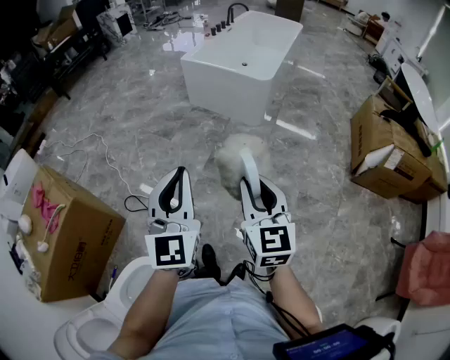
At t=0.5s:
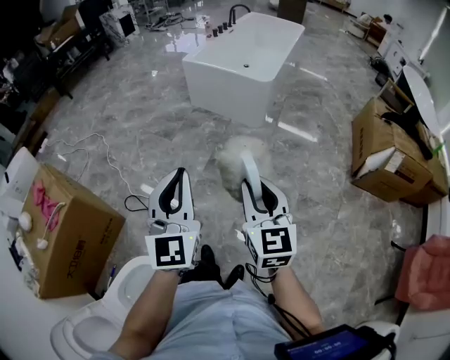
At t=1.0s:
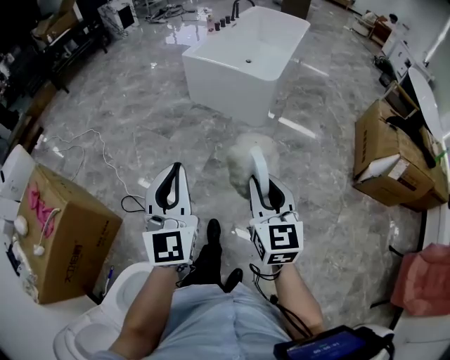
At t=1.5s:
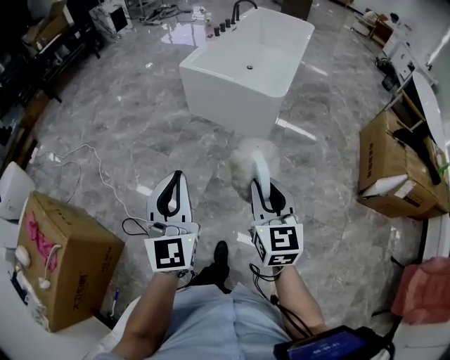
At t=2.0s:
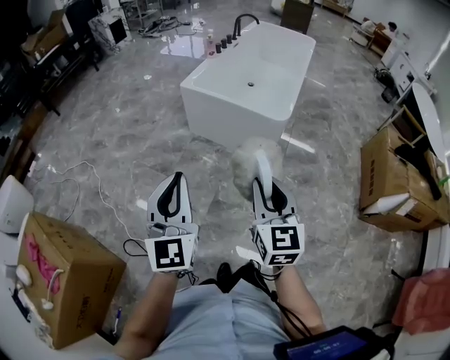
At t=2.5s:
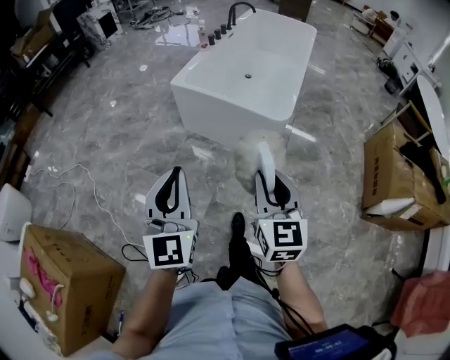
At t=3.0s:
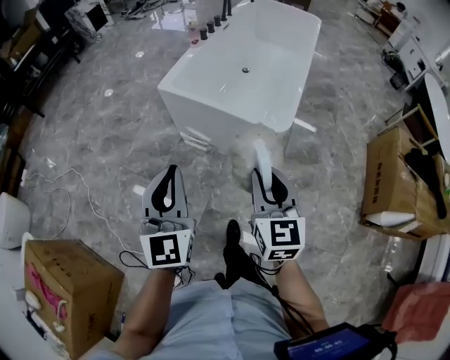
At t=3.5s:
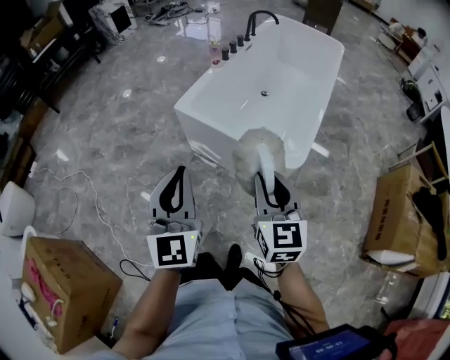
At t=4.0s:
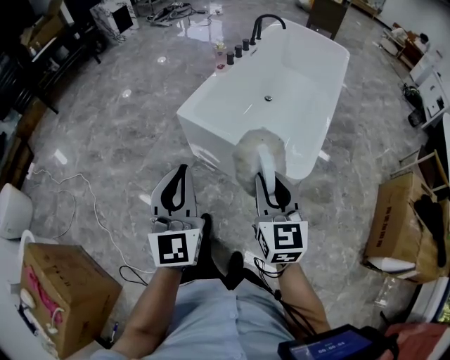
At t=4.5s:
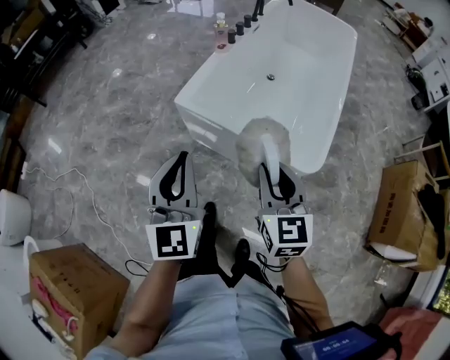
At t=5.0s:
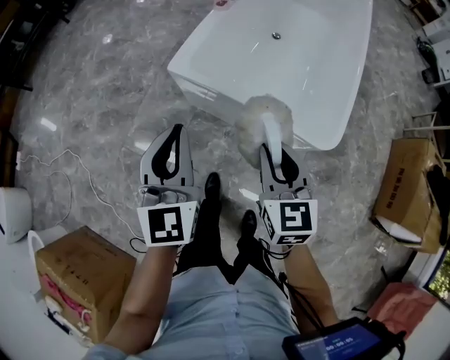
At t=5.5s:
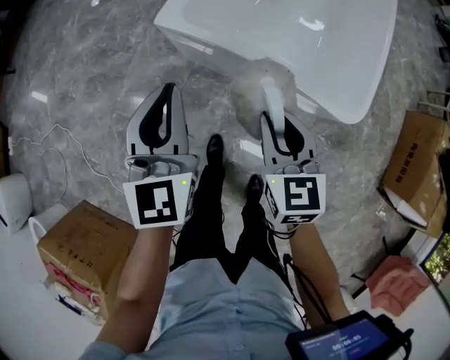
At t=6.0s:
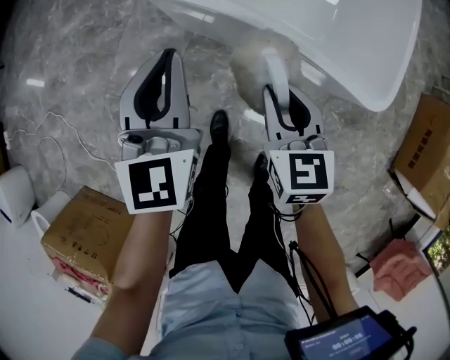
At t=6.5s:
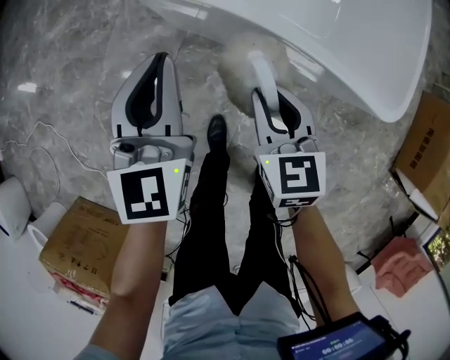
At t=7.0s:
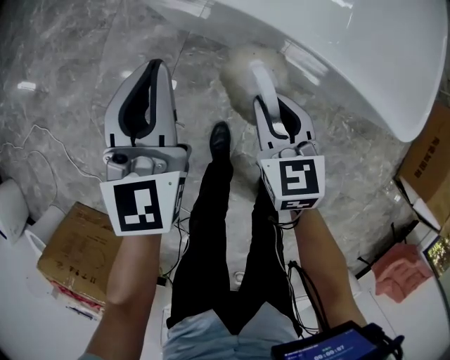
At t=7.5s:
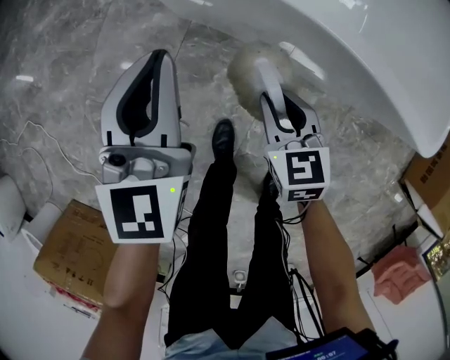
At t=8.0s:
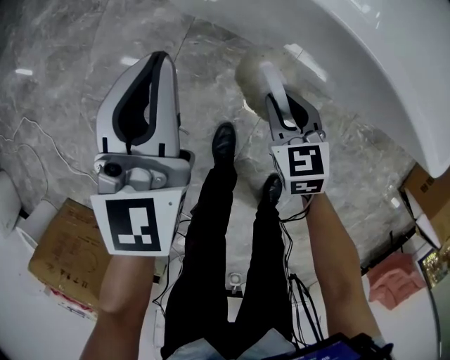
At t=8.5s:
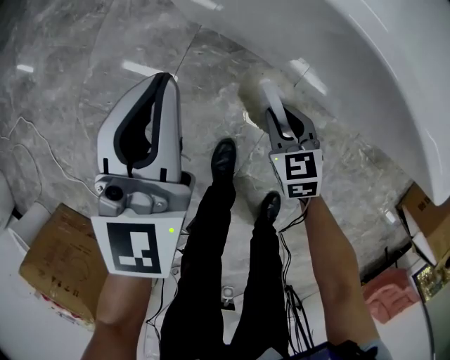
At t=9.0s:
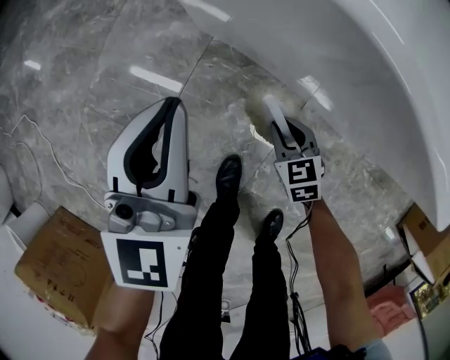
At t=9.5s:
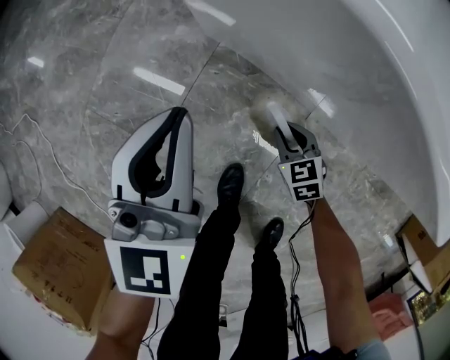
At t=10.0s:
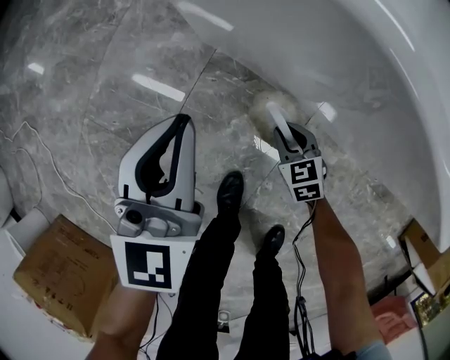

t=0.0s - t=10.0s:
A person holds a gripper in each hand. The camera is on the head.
t=0.0s - t=2.0s: The grippers both shift forward by roughly 40 cm.
t=2.0s - t=4.0s: Both grippers are carried forward, roughly 40 cm.
t=4.0s - t=6.0s: The grippers both shift downward and forward by roughly 40 cm. The right gripper changes its angle by about 20 degrees.
t=6.0s - t=8.0s: Both grippers travel together downward, approximately 30 cm.
t=8.0s - t=10.0s: The left gripper is displaced downward by roughly 10 cm, while the right gripper goes about 20 cm downward.

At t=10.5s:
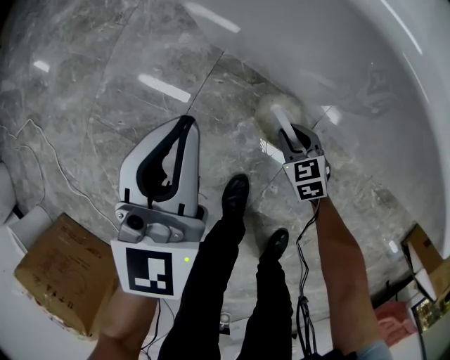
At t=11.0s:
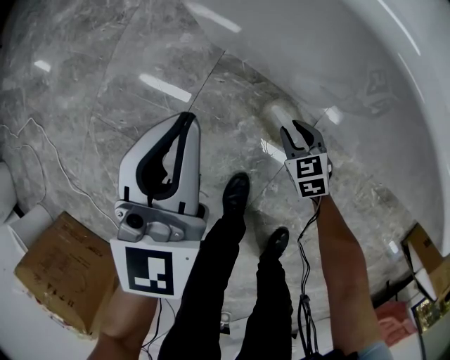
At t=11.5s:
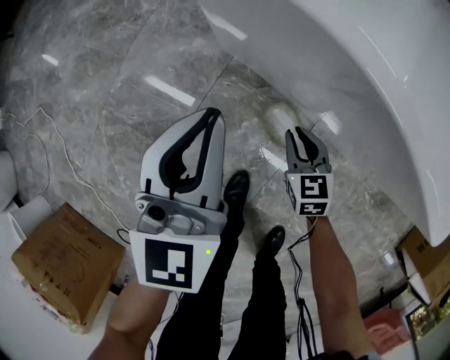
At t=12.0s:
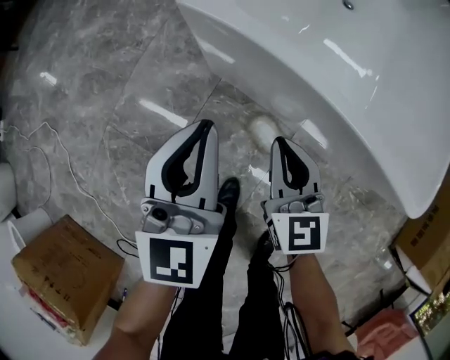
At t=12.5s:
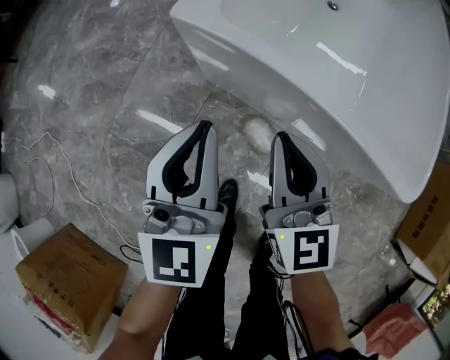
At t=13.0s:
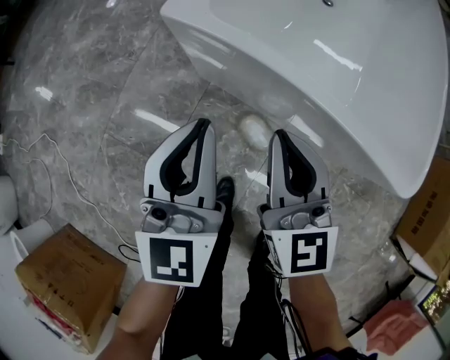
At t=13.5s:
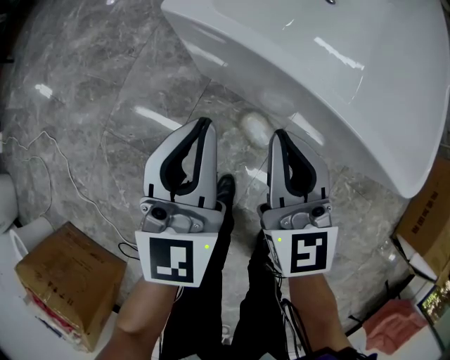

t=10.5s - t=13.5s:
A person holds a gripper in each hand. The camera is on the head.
t=10.5s - t=12.0s: The right gripper is displaced upward by approximately 35 cm, and tips its fingers upward by some 30 degrees, while the left gripper heads upward, covering about 15 cm.
t=12.0s - t=13.5s: The right gripper travels upward by approximately 10 cm.

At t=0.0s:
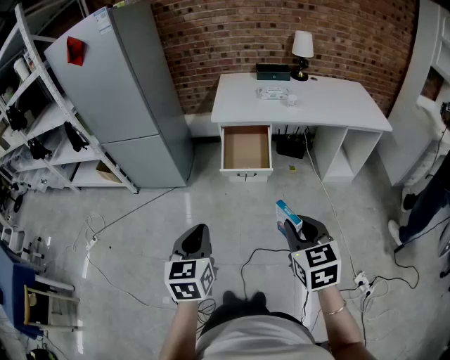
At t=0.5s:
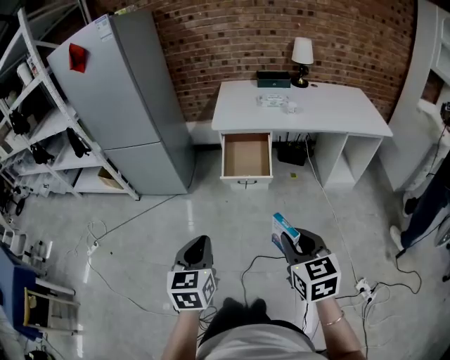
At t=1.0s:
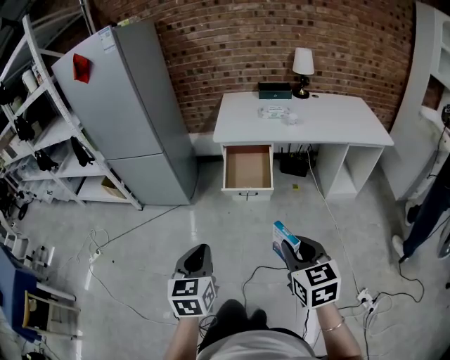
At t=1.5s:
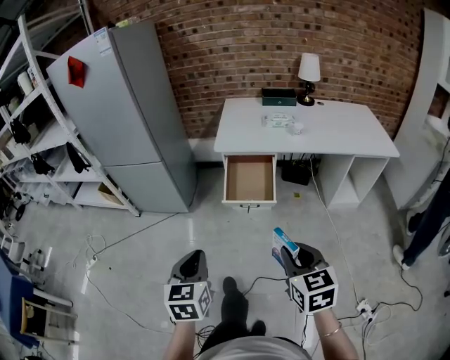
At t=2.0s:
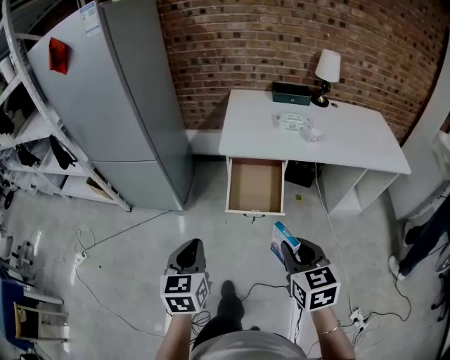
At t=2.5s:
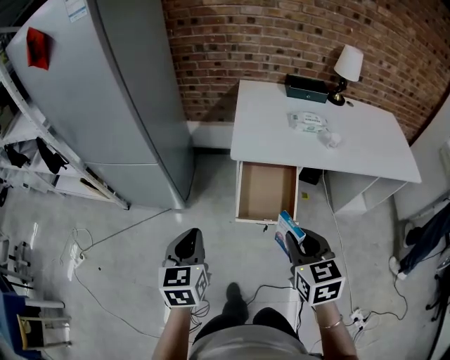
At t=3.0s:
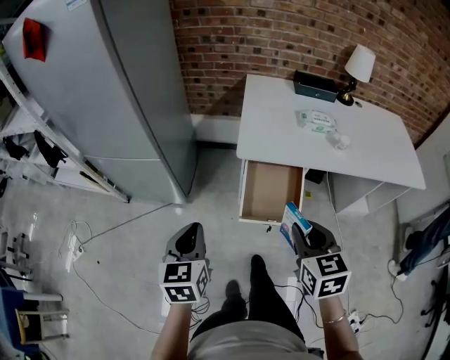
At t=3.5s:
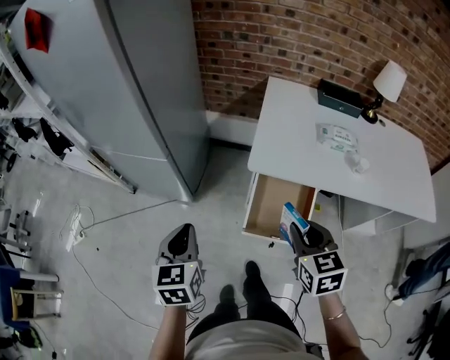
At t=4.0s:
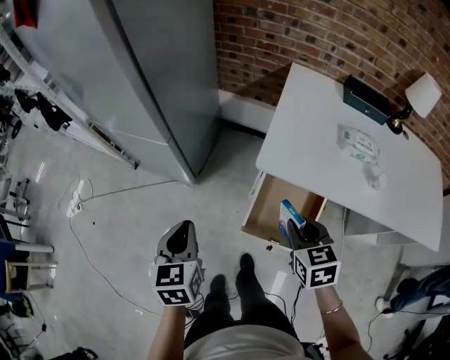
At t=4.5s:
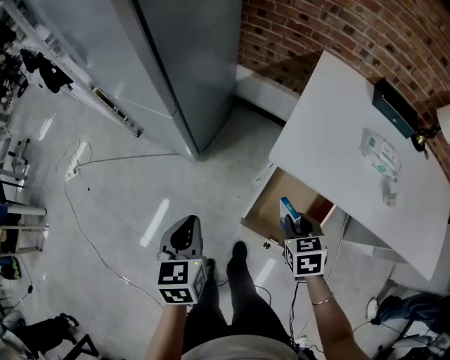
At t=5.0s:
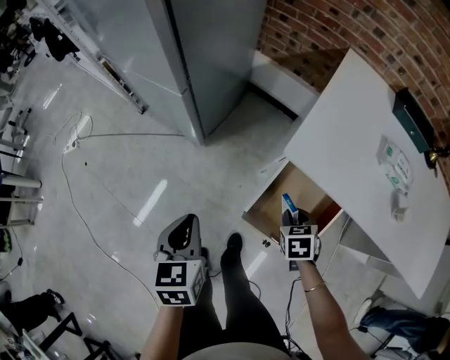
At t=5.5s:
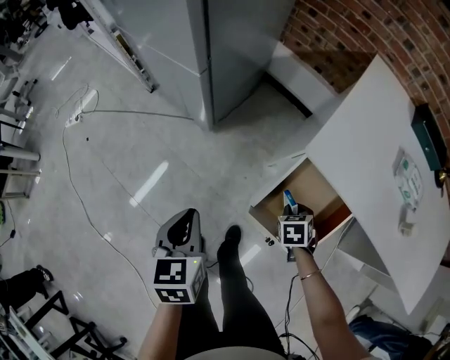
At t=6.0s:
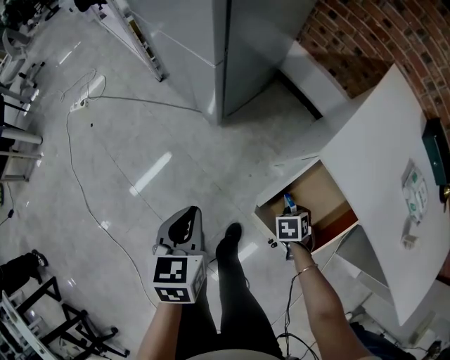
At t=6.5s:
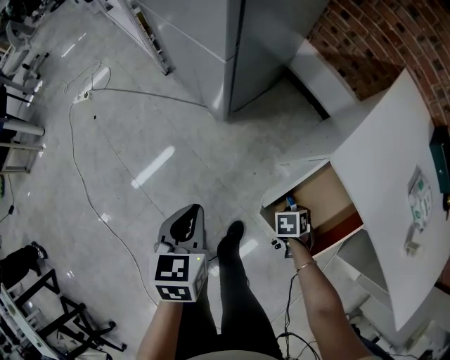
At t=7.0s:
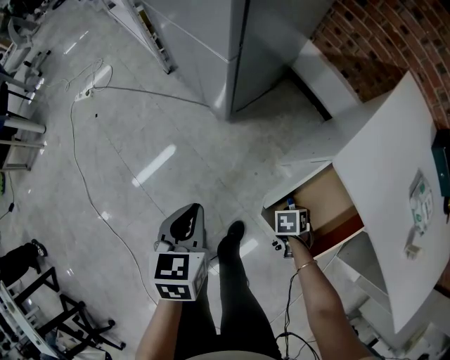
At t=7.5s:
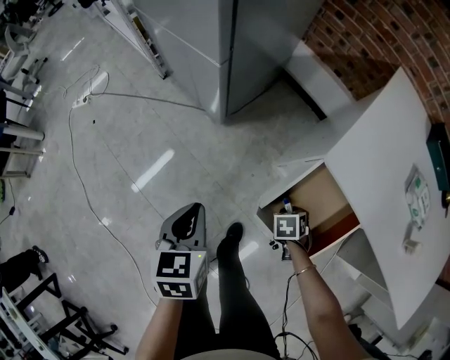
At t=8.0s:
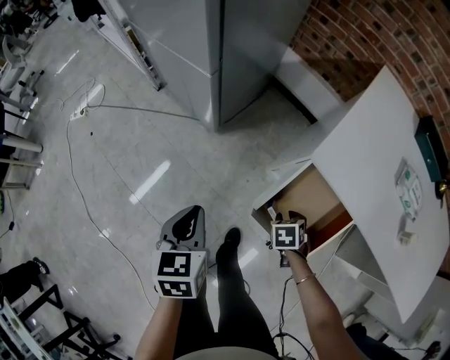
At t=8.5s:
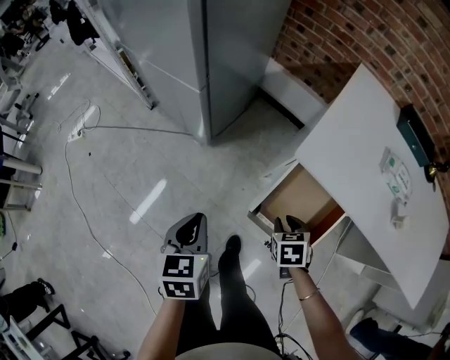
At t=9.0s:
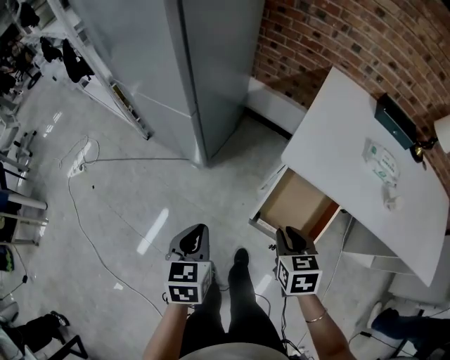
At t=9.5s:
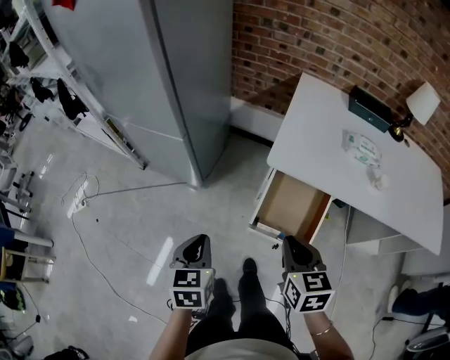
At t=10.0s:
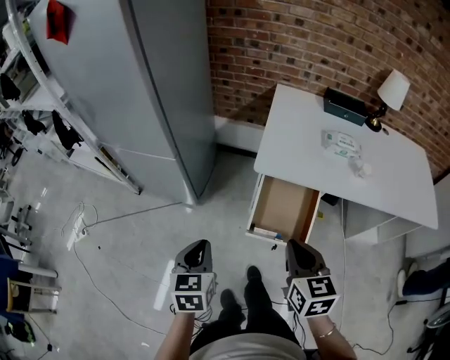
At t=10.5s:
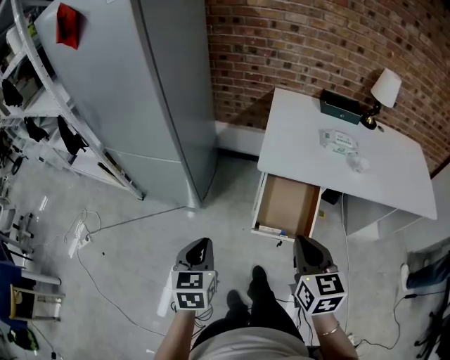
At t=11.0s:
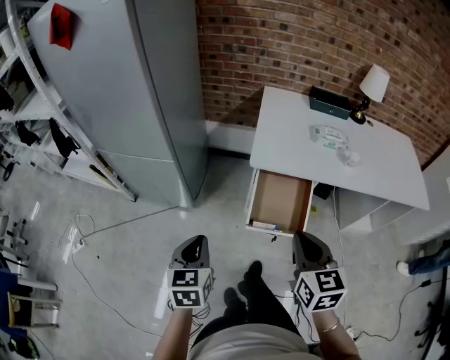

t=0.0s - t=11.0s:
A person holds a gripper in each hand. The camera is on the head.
t=0.0s - t=2.0s: The grippers both shift forward by approximately 25 cm.
t=2.0s - t=3.5s: Both grippers travel together forward, roughly 30 cm.
t=3.5s - t=5.5s: The left gripper is displaced downward by some 20 cm, and turns by some 30 degrees; the right gripper heads downward and forward, covering roughly 40 cm, and tips its fingers downward by approximately 40 degrees.
t=5.5s - t=7.5s: The right gripper heads downward, covering about 5 cm.
t=7.5s - t=9.0s: The right gripper moves upward, about 30 cm, and swivels about 40 degrees; the left gripper moves upward, about 10 cm.
t=9.0s - t=11.0s: The left gripper moves upward and backward, roughly 15 cm. Meanwhile the right gripper travels upward and backward by about 25 cm, changes its angle by some 30 degrees, and closes.

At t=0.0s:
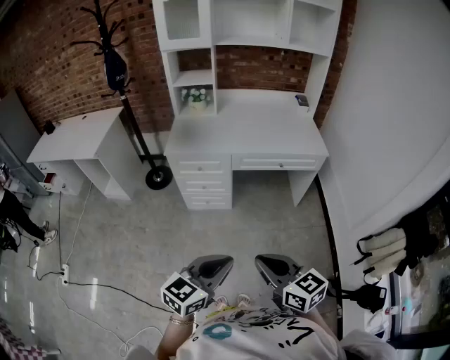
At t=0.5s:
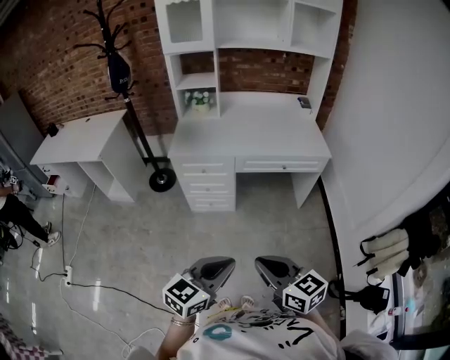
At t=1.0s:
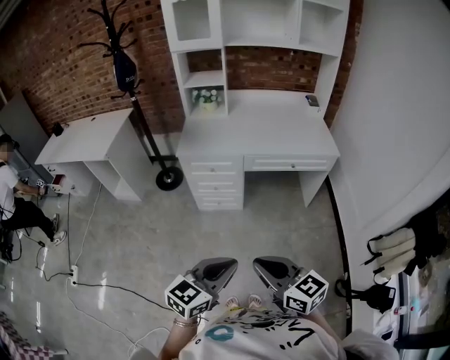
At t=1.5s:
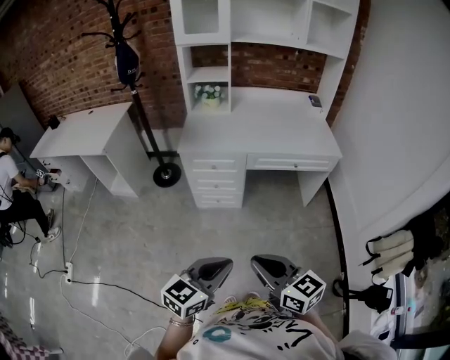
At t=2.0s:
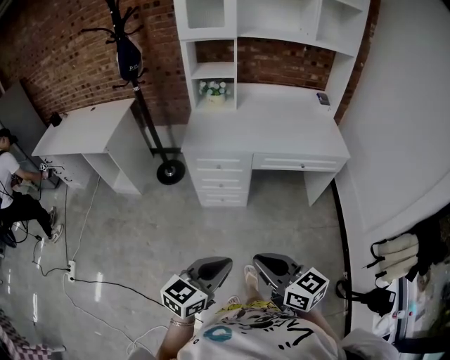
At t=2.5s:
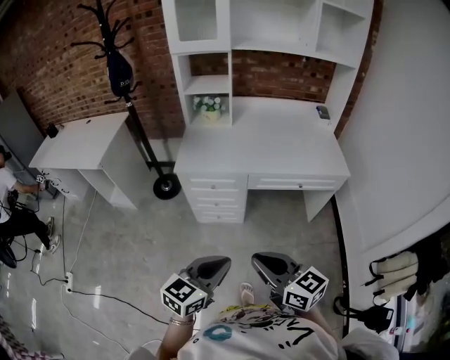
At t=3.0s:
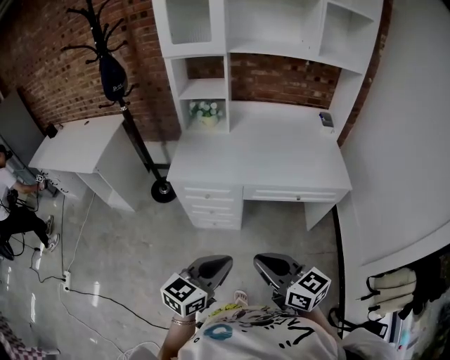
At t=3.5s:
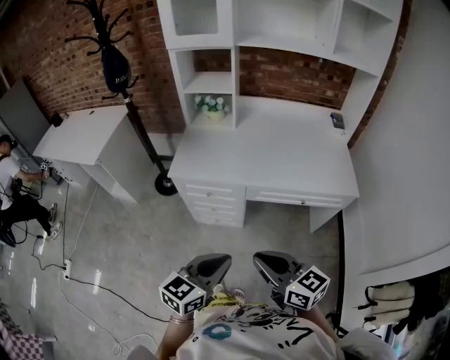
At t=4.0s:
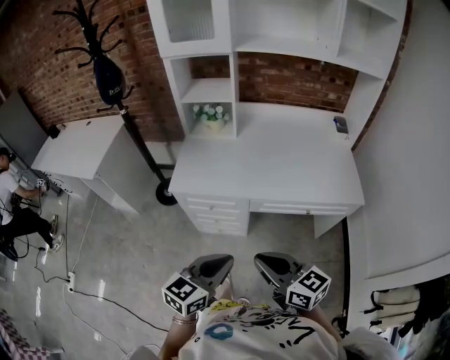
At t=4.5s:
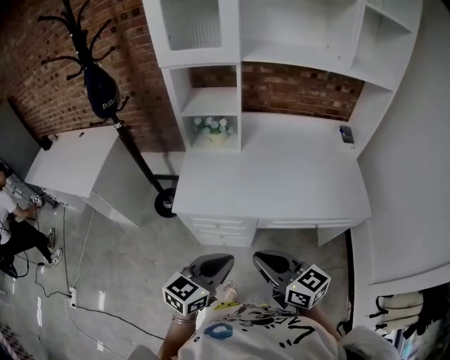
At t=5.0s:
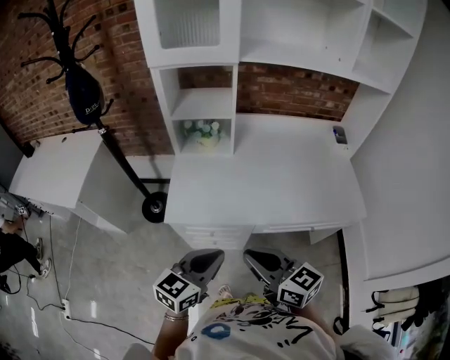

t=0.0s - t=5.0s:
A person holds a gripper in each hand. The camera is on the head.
t=0.0s - t=2.5s: The two grippers go approximately 15 cm forward and to the left.
t=2.5s - t=5.0s: Both grippers move forward, about 35 cm.
